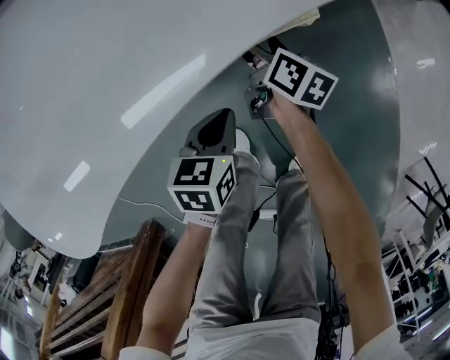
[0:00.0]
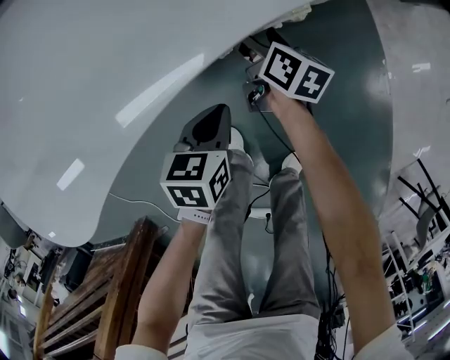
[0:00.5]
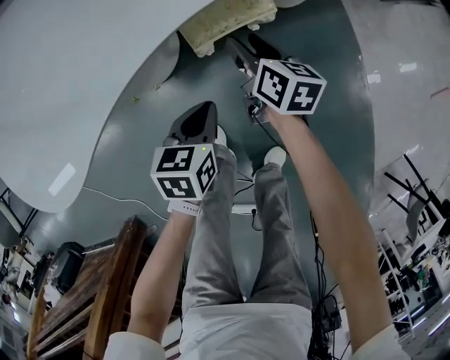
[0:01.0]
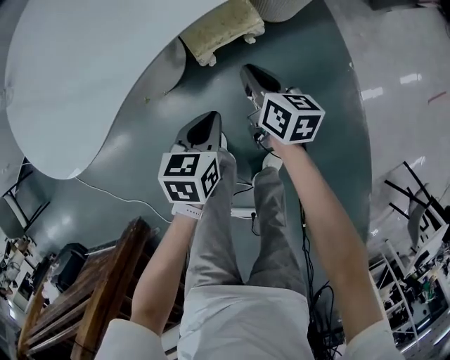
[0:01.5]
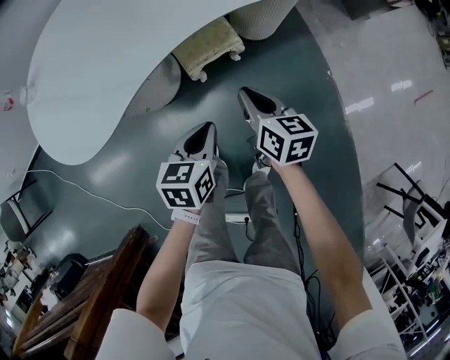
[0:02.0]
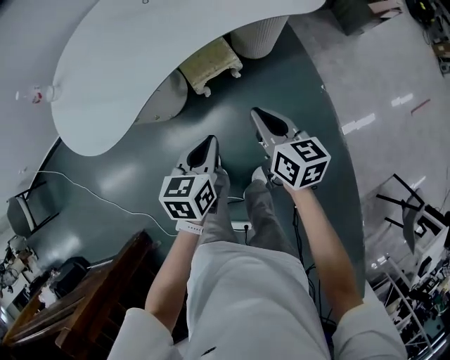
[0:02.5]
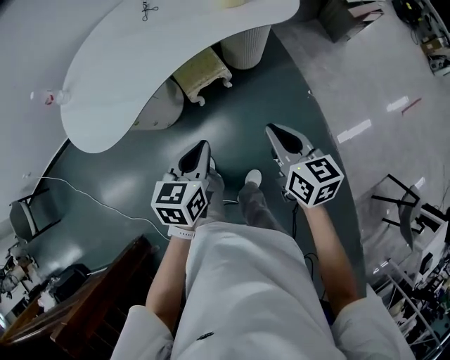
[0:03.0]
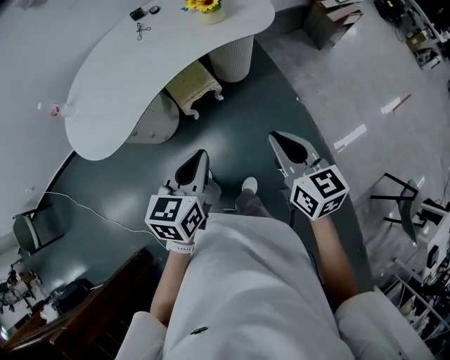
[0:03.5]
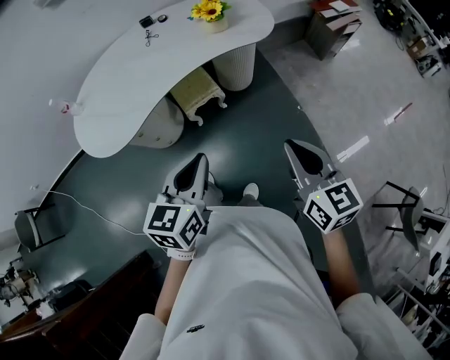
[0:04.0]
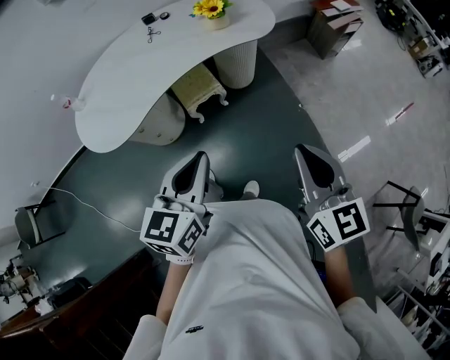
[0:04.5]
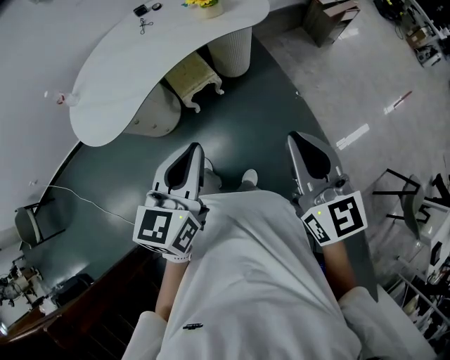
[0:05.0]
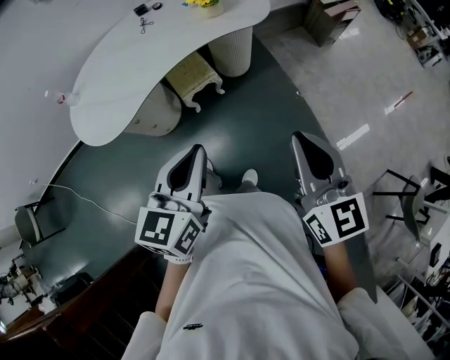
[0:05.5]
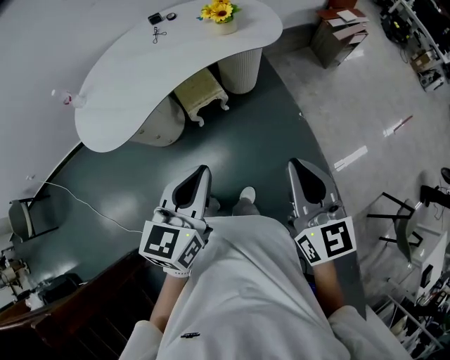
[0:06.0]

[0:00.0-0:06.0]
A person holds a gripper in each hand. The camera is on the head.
0:00.0 to 0:02.0: The right gripper heads upward and backward, covering approximately 35 cm, rotates some 20 degrees, and closes its fingers, while the left gripper heads upward and to the right, covering roughly 30 cm.
0:02.0 to 0:04.0: The left gripper goes about 35 cm upward and backward, and changes its angle by roughly 20 degrees. The right gripper goes some 50 cm upward, backward and to the right, and changes its angle by approximately 20 degrees.
0:04.0 to 0:06.0: The left gripper ends up some 5 cm from where it was. The right gripper changes place by roughly 5 cm.

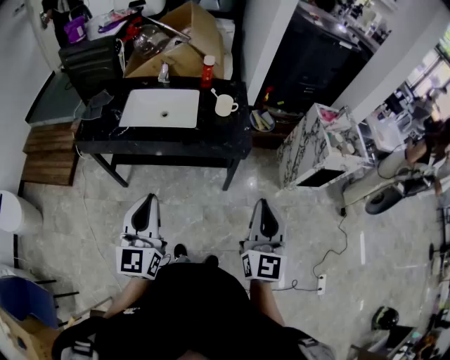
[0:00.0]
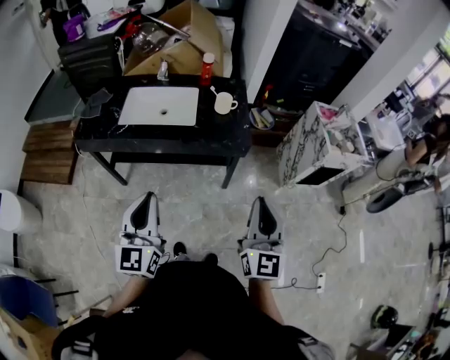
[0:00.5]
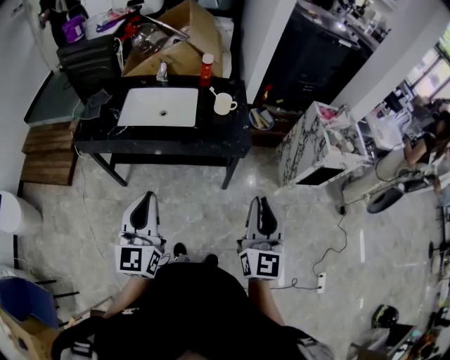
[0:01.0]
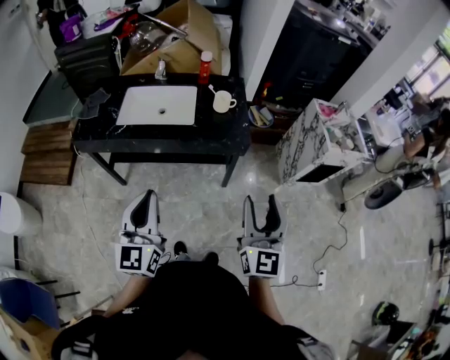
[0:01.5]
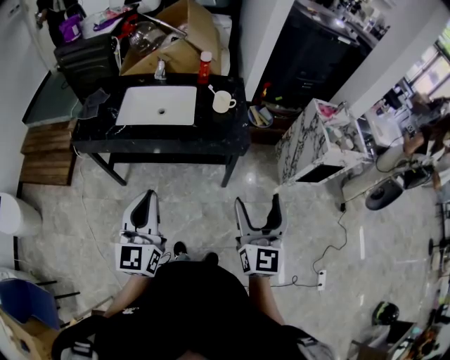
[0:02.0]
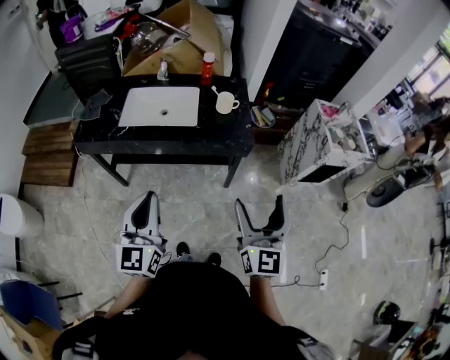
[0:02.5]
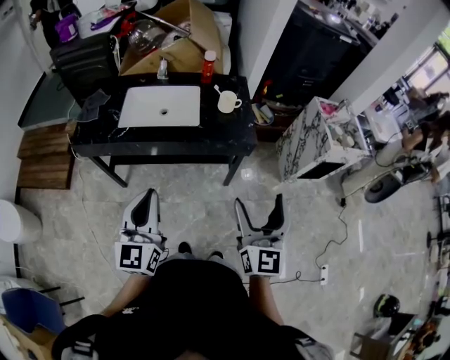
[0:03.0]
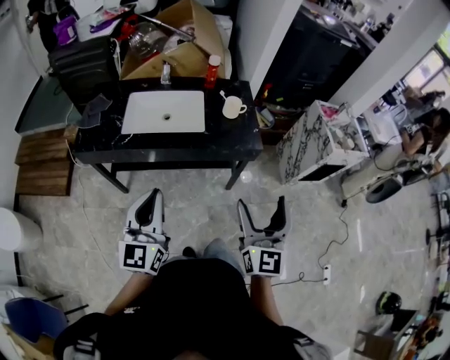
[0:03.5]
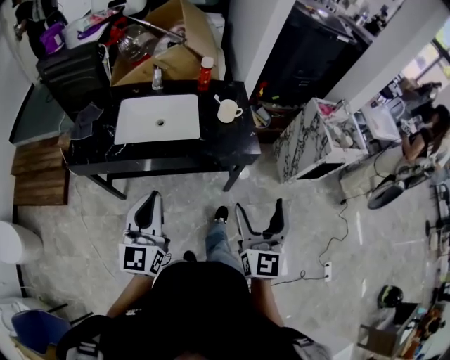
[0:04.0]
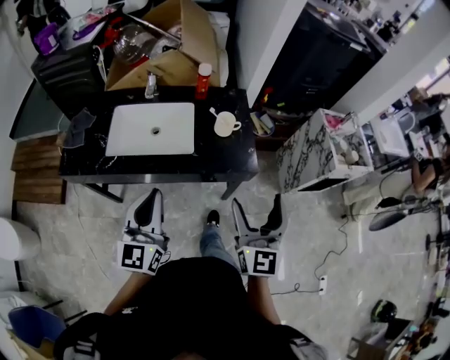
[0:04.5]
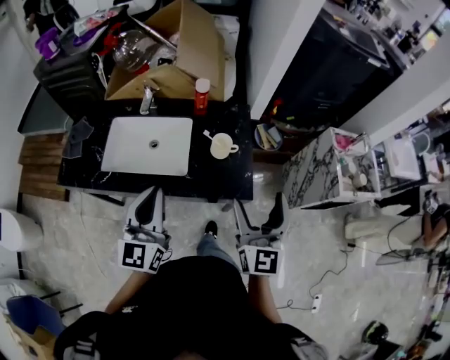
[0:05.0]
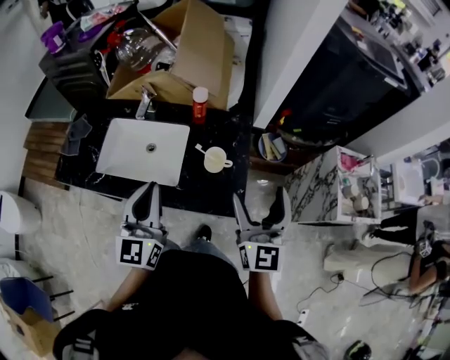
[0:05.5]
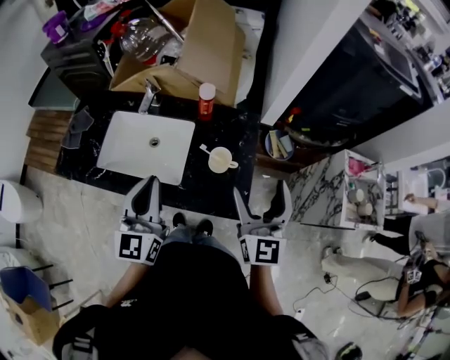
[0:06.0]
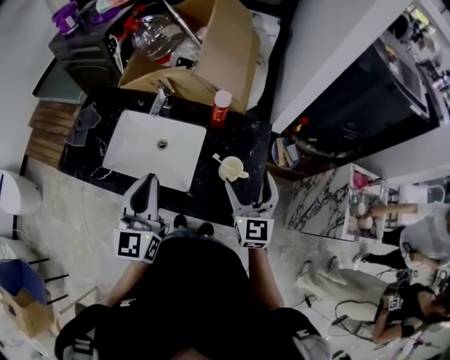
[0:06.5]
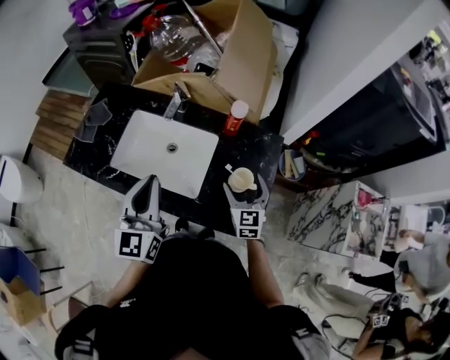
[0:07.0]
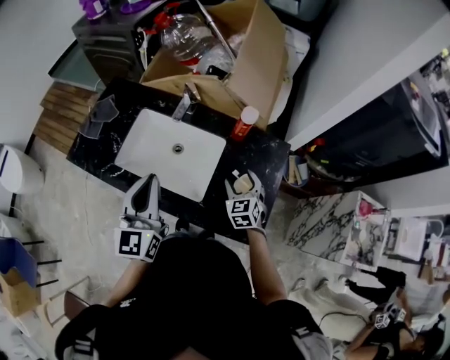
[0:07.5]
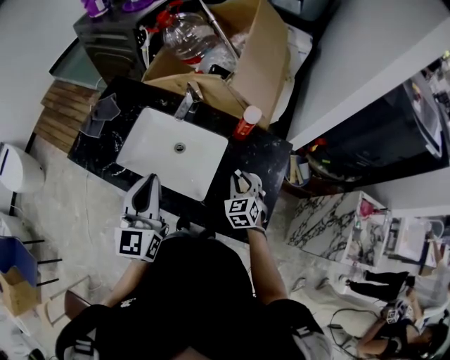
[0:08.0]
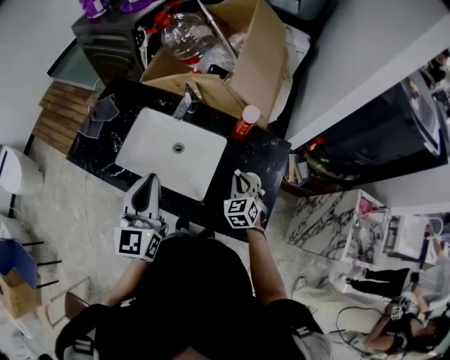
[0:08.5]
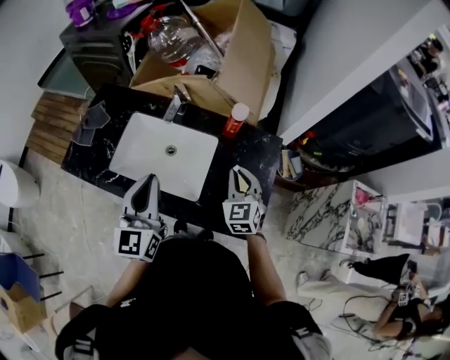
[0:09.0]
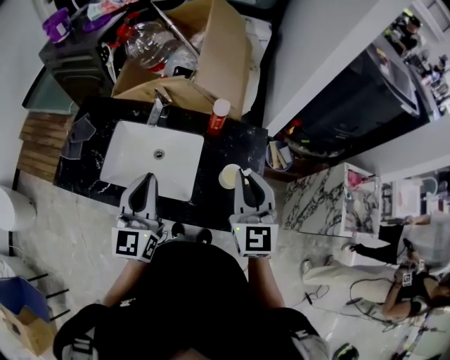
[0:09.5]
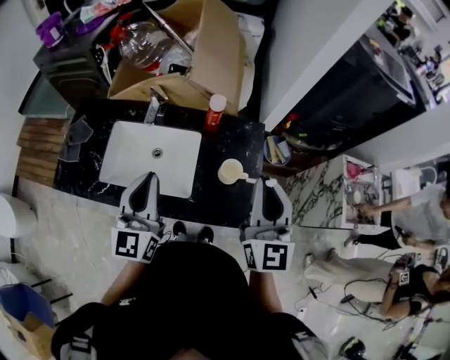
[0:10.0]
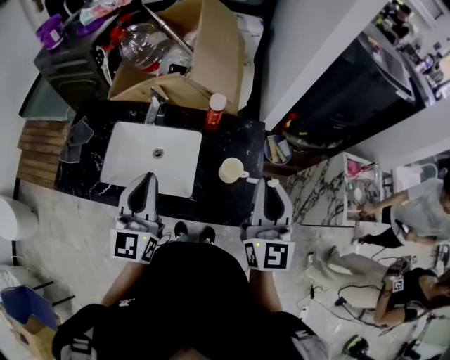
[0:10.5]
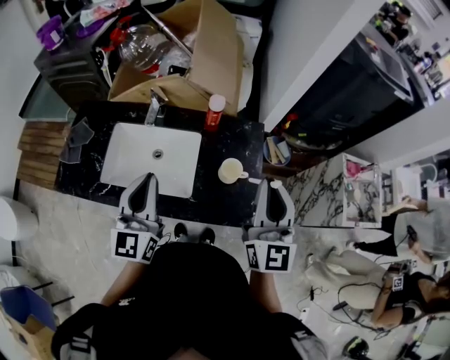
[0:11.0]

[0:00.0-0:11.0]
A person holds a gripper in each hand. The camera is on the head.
0:00.0 to 0:02.0: The right gripper opens up.
0:02.0 to 0:03.5: The two grippers go roughly 10 cm to the left.
0:03.5 to 0:05.5: The two grippers go some 35 cm forward.
0:05.5 to 0:07.5: The right gripper moves downward, forward and to the left, about 35 cm, and angles its fingers downward, by about 40 degrees; the left gripper shifts about 15 cm to the left and forward.
0:07.5 to 0:09.0: The right gripper shifts about 10 cm upward, and closes its fingers.
0:09.0 to 0:11.0: The right gripper travels upward, backward and to the right by approximately 25 cm, and tilts its fingers about 30 degrees upward.

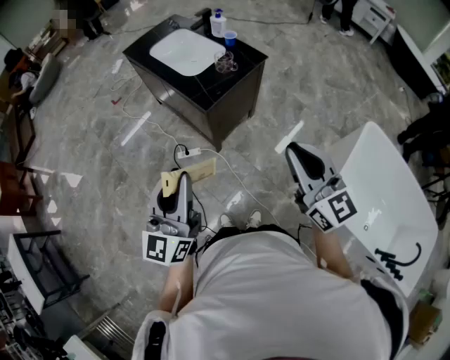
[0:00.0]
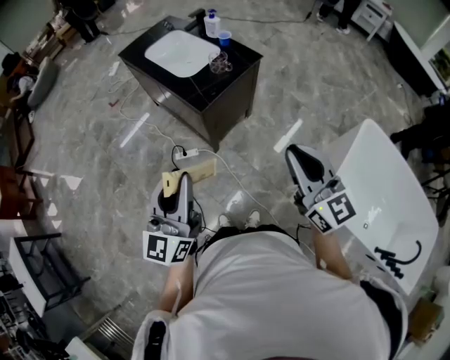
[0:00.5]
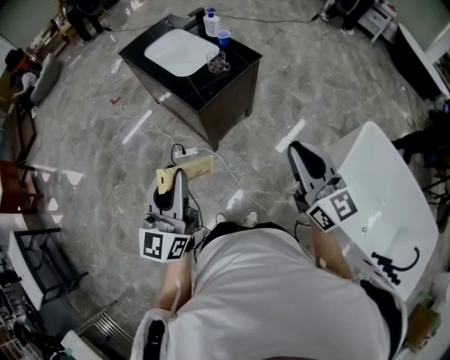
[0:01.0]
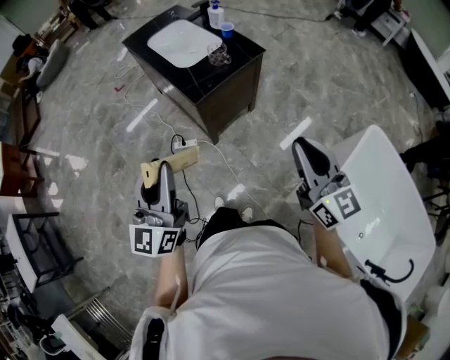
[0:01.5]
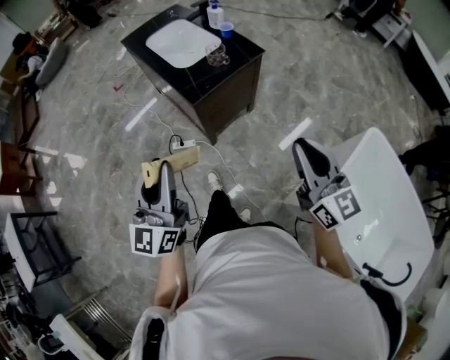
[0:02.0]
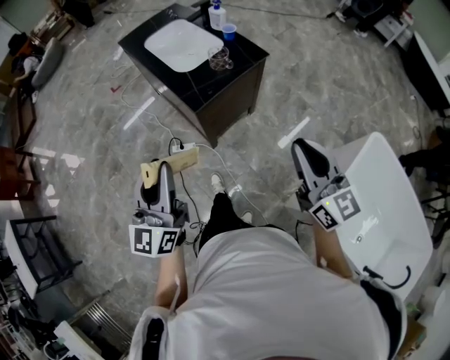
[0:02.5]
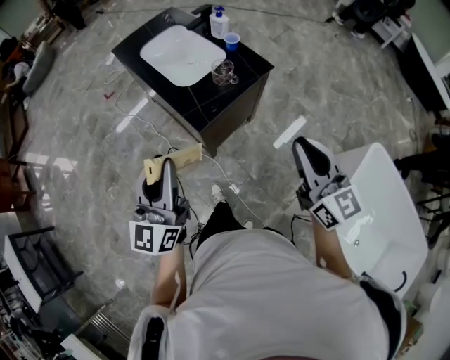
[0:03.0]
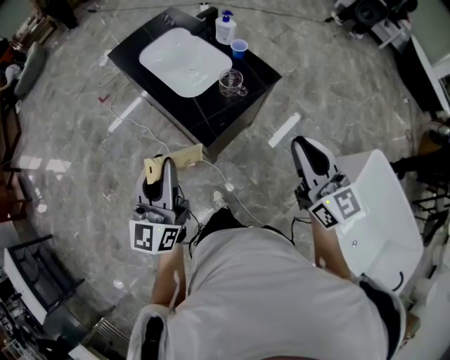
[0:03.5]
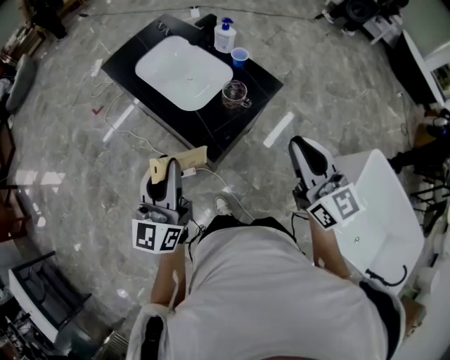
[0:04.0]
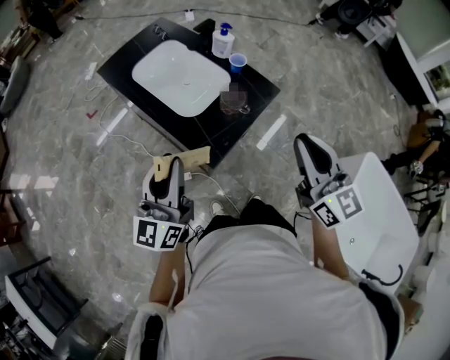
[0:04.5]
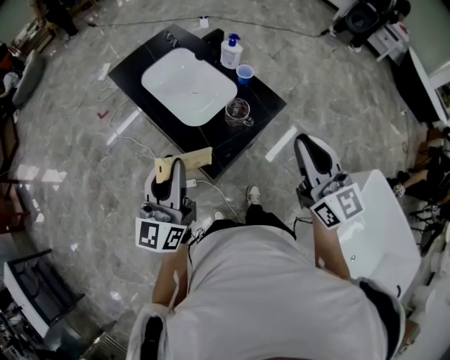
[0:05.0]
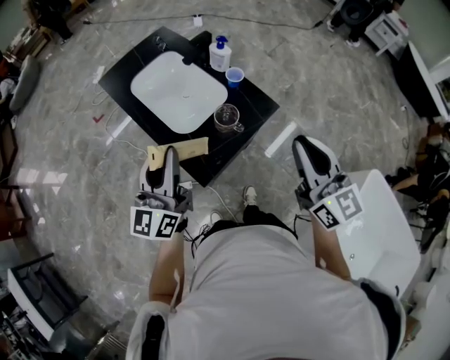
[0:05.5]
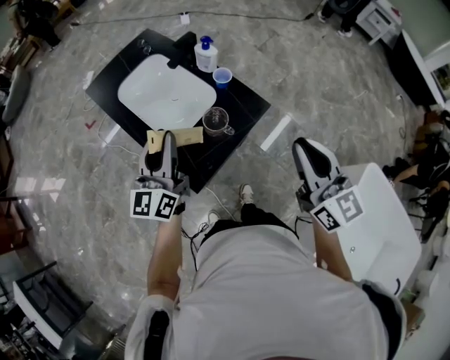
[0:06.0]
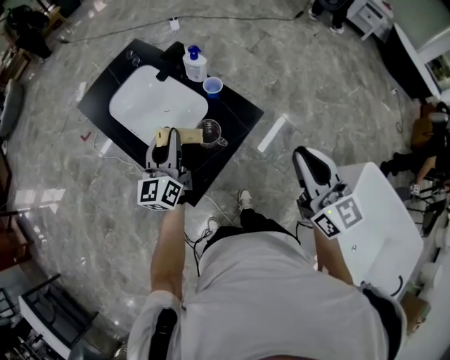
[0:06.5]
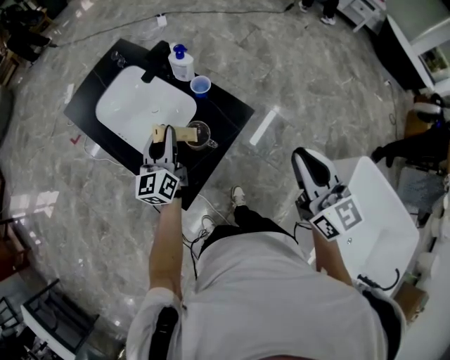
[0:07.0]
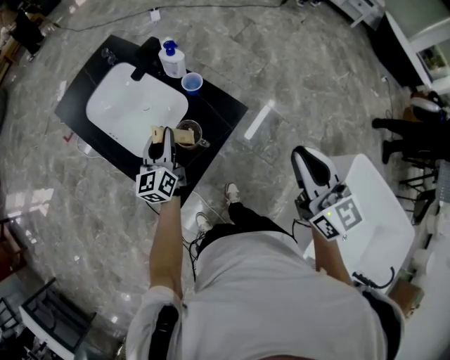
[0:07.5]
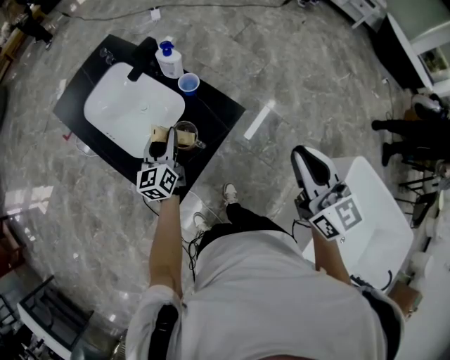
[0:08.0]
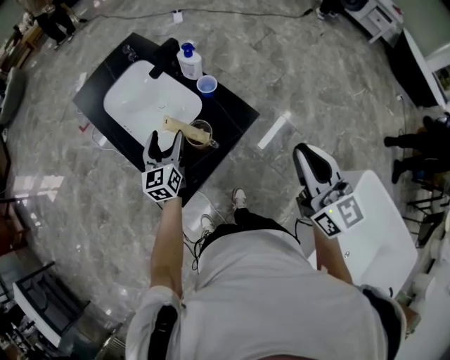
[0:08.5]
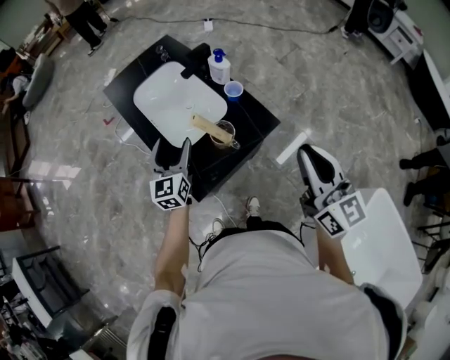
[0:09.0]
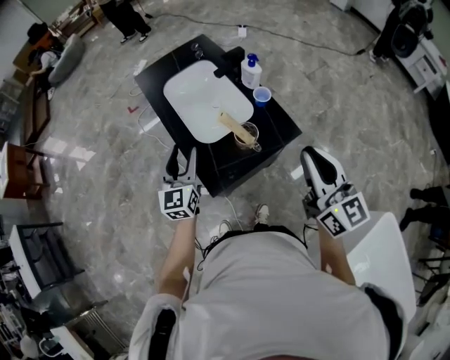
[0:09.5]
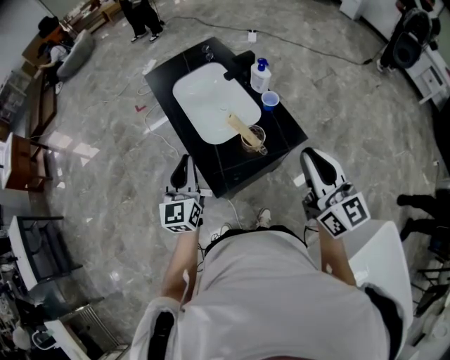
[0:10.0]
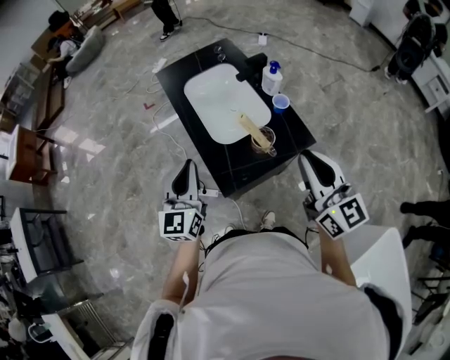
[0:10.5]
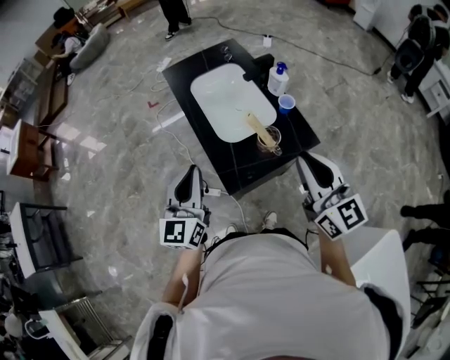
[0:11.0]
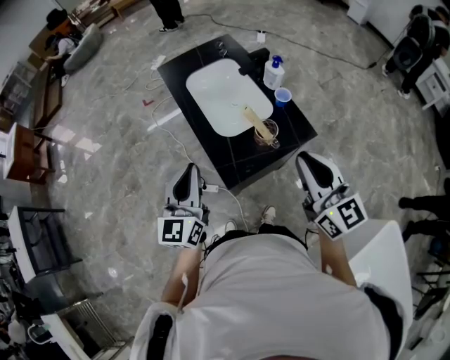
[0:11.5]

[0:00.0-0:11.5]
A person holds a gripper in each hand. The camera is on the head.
0:00.0 to 0:02.0: The left gripper travels to the right by approximately 5 cm; the right gripper heads to the right, covering some 10 cm.
0:02.0 to 0:04.0: Both grippers move forward, approximately 30 cm.
0:04.0 to 0:06.0: Both grippers move forward and to the right, about 15 cm.
0:06.0 to 0:07.5: The left gripper goes about 20 cm downward, forward and to the right; the right gripper travels to the right by roughly 5 cm.
0:07.5 to 0:09.5: The left gripper travels to the left, backward and upward by roughly 20 cm, turns by about 30 degrees, and opens its fingers. The right gripper goes some 5 cm to the left, and rotates some 20 degrees.
0:09.5 to 0:11.5: The left gripper moves backward, upward and to the left, about 15 cm, and closes; the right gripper shifts approximately 10 cm to the left.
